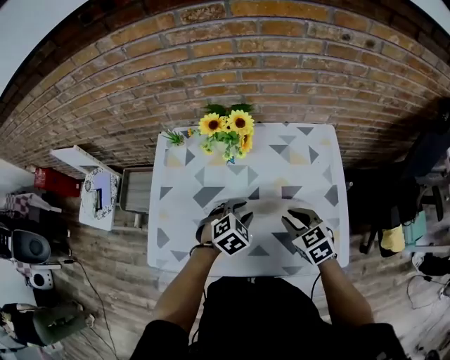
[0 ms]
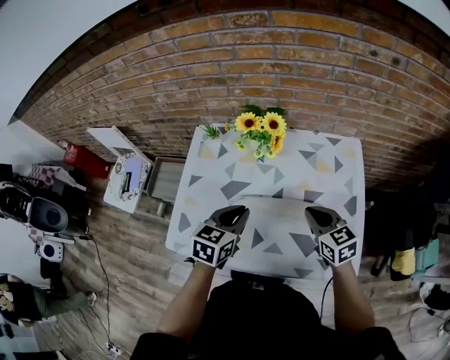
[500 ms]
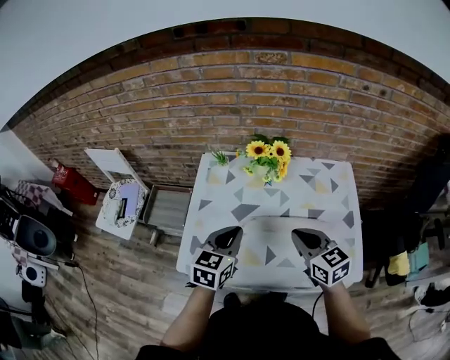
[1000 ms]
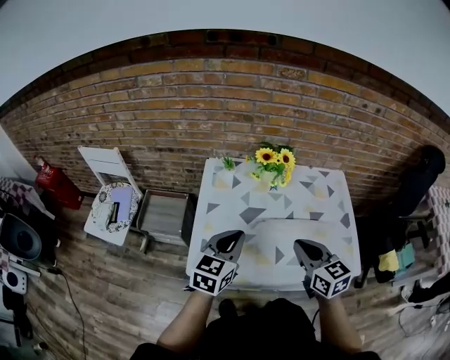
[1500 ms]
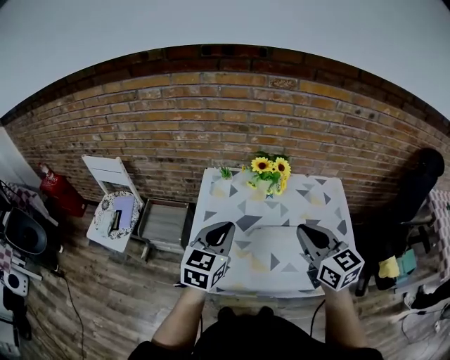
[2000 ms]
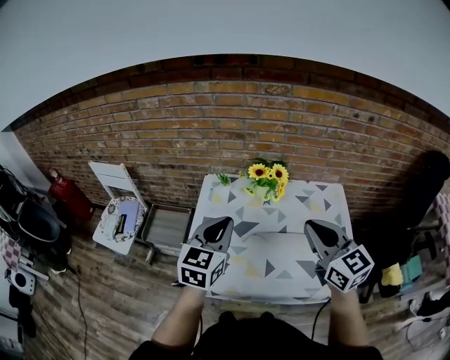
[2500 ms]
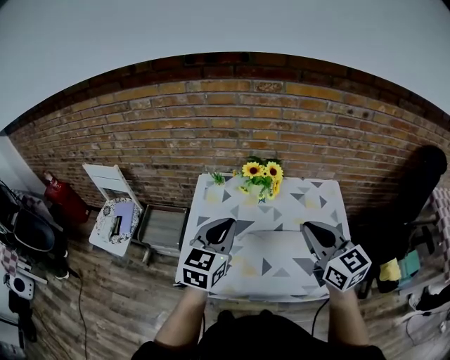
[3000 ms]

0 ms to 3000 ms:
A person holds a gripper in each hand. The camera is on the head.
0 ms to 1500 ms: The right gripper travels to the left, upward and backward by some 25 cm, changes its angle by some 20 degrees, and closes its fingers, while the left gripper shifts approximately 30 cm to the left and upward, tips its fingers upward by approximately 40 degrees, and closes.
1500 ms to 3000 ms: The left gripper moves upward, roughly 10 cm. Meanwhile the right gripper moves upward and to the right, about 15 cm.

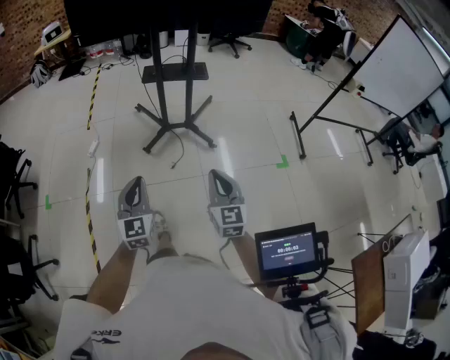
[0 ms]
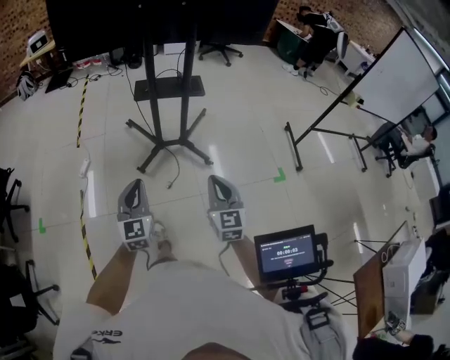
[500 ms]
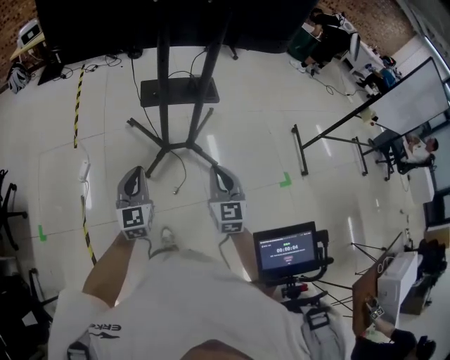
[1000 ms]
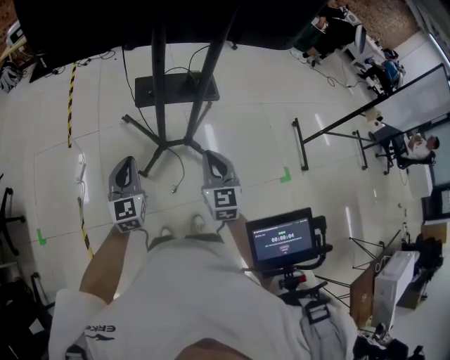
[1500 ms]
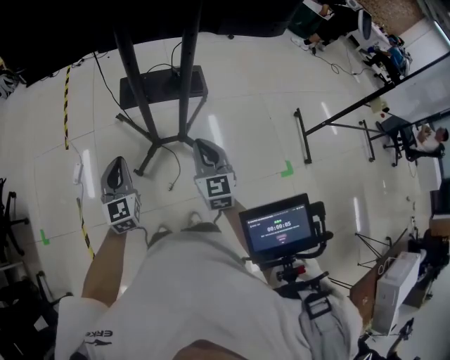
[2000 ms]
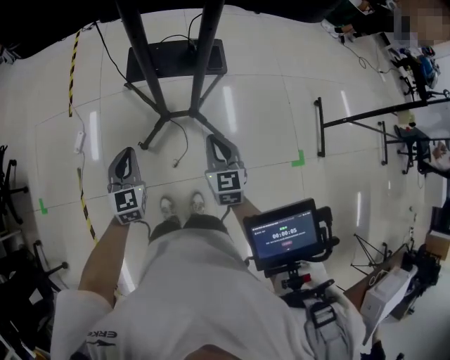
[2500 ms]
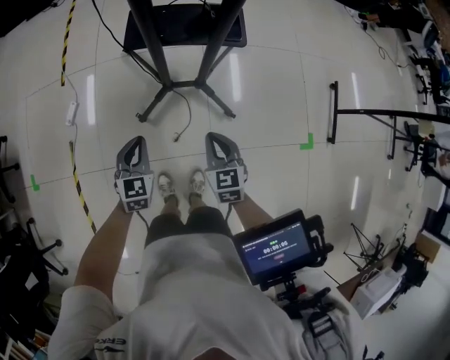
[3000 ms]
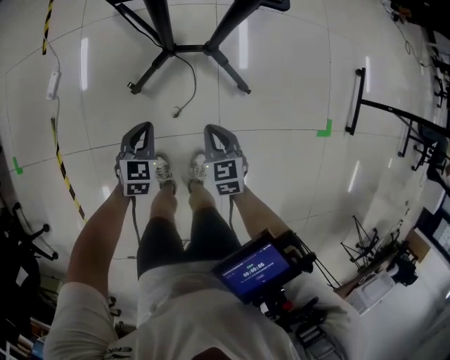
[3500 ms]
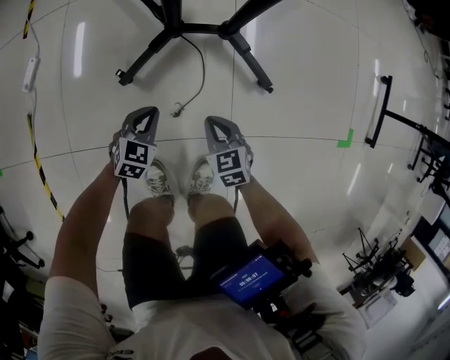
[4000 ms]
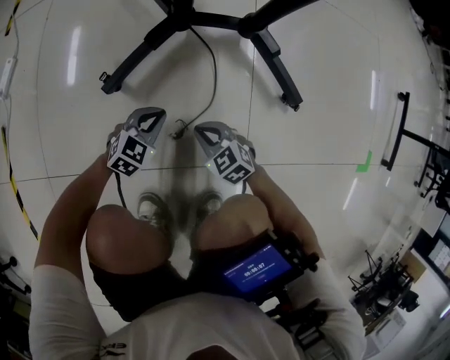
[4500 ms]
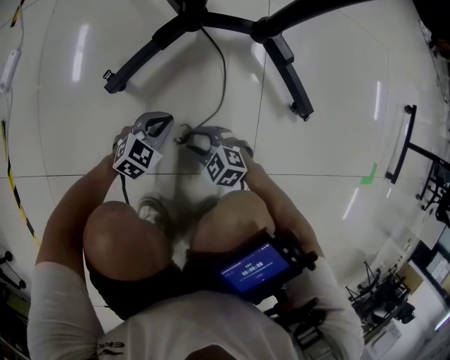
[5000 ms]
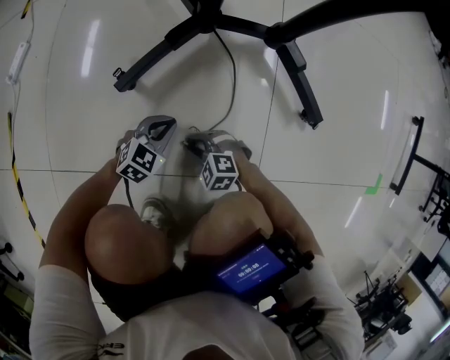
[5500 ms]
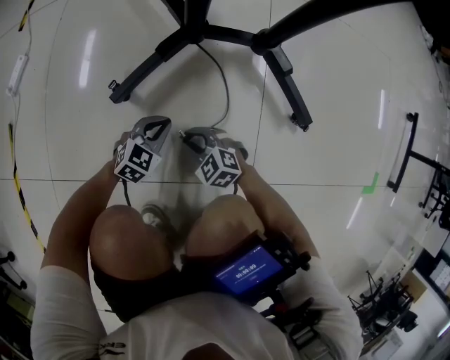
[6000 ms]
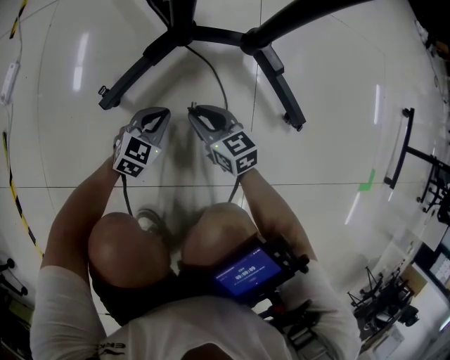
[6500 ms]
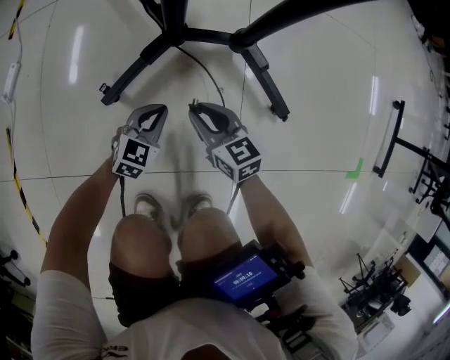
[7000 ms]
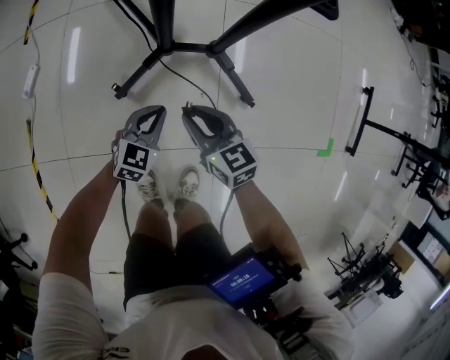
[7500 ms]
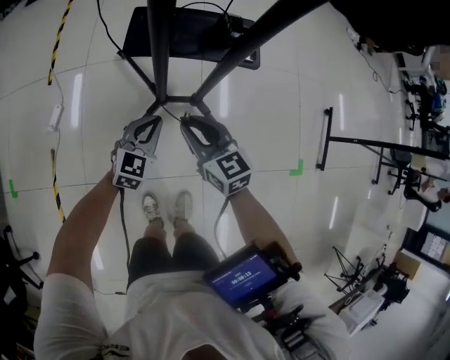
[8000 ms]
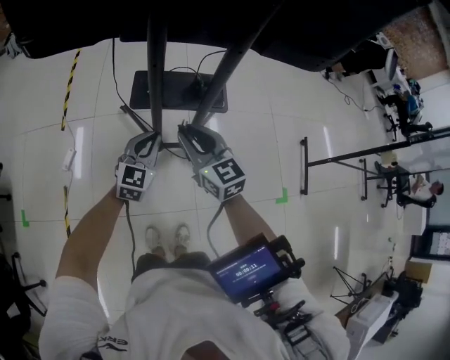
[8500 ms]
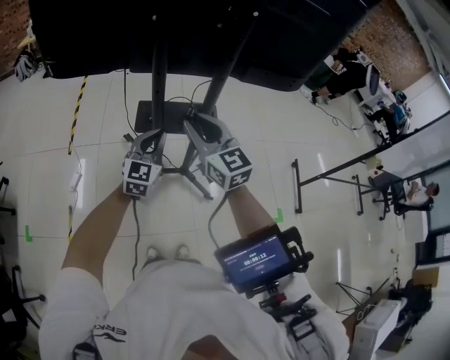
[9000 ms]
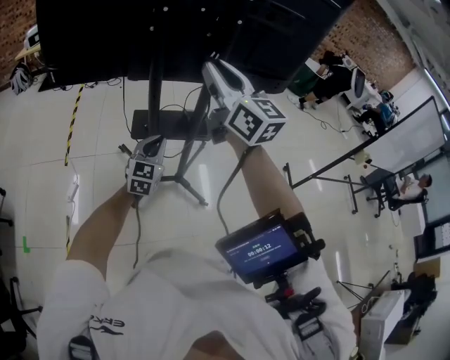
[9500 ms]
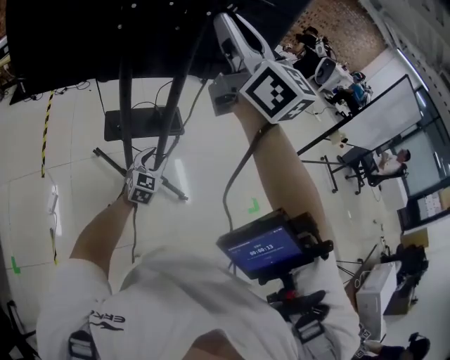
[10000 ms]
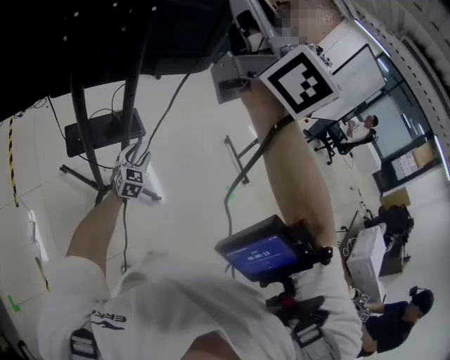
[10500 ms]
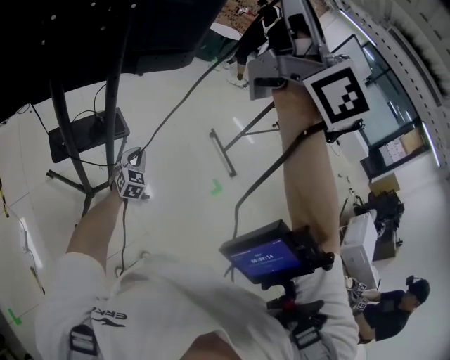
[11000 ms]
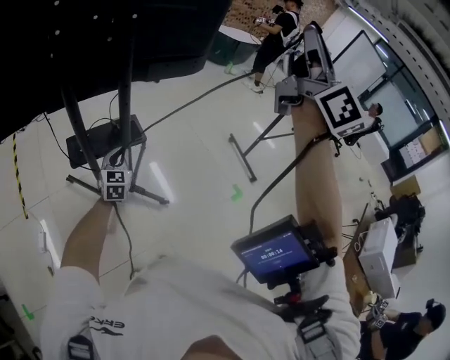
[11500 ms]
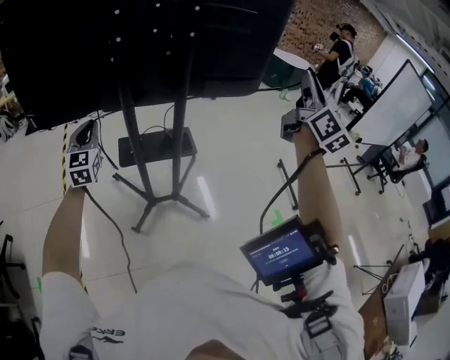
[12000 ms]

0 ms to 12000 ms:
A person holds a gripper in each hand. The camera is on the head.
0 ms to 2000 ms: Both grippers are carried forward, roughly 50 cm.
2000 ms to 4000 ms: The grippers both shift downward by some 70 cm. The left gripper points its fingers some 40 degrees further downward, while the right gripper tips its fingers downward by roughly 30 degrees.
4000 ms to 6000 ms: The two grippers go about 25 cm downward. The right gripper rotates some 40 degrees, and opens up.
6000 ms to 8000 ms: Both grippers travel together upward, approximately 70 cm. The left gripper rotates some 20 degrees, while the right gripper rotates about 50 degrees.
8000 ms to 10000 ms: The right gripper travels upward by approximately 70 cm, and tips its fingers upward by approximately 50 degrees. Meanwhile the left gripper goes about 25 cm upward, and opens.
10000 ms to 12000 ms: The right gripper shifts roughly 30 cm to the right, and turns by approximately 30 degrees. Meanwhile the left gripper shifts some 30 cm to the left and upward, rotates about 30 degrees, and closes its fingers.

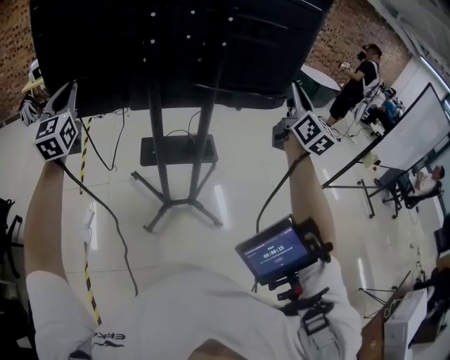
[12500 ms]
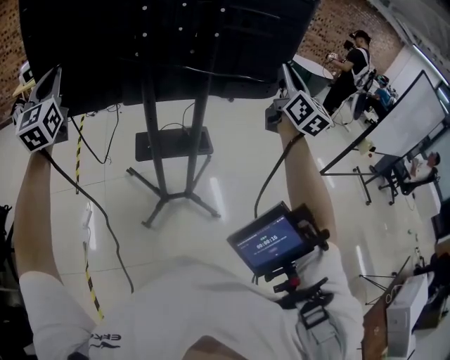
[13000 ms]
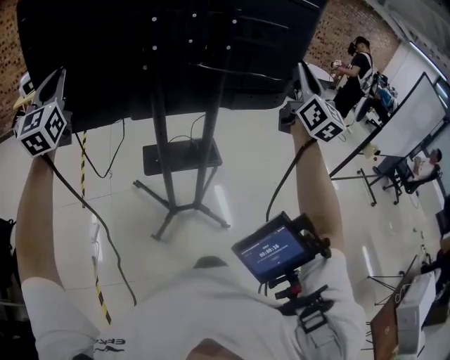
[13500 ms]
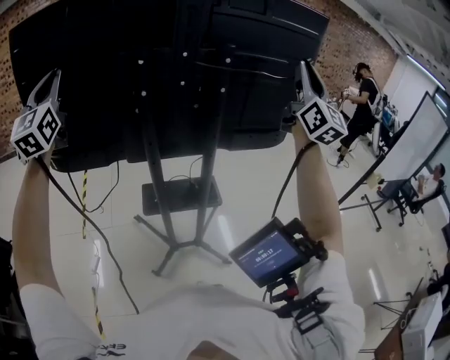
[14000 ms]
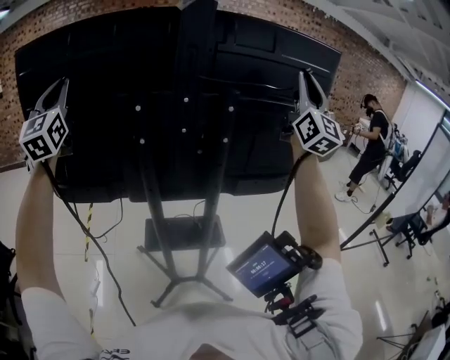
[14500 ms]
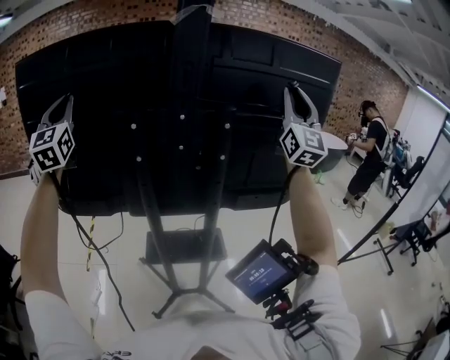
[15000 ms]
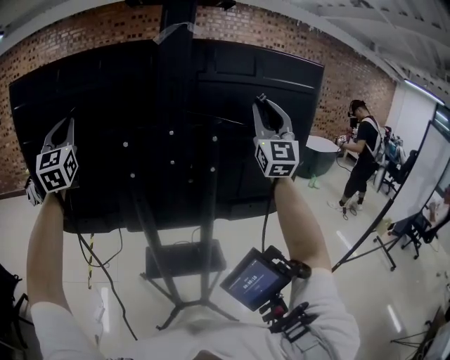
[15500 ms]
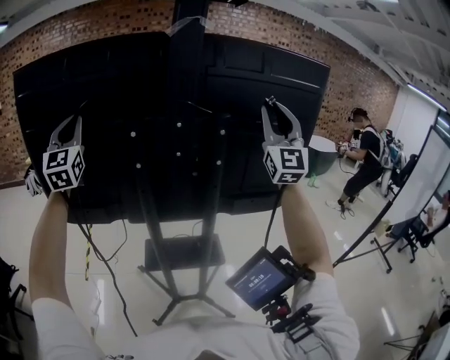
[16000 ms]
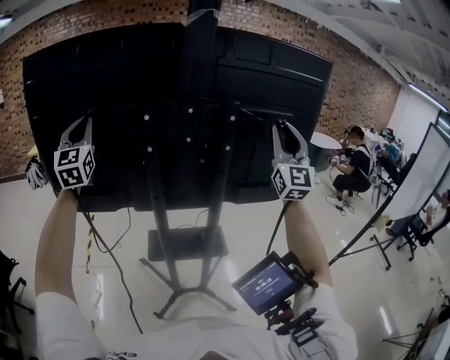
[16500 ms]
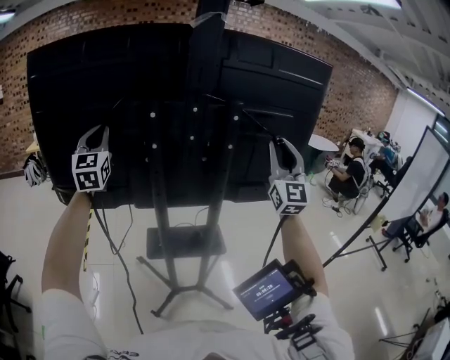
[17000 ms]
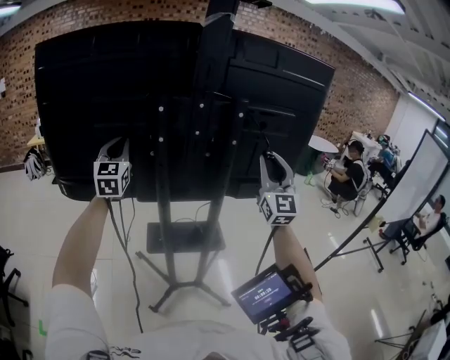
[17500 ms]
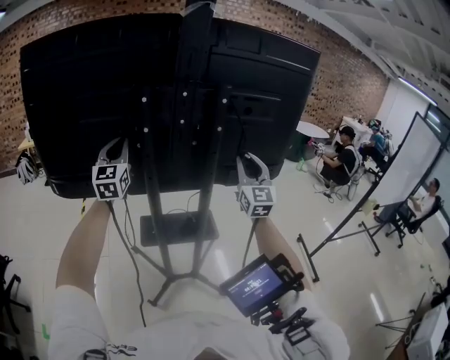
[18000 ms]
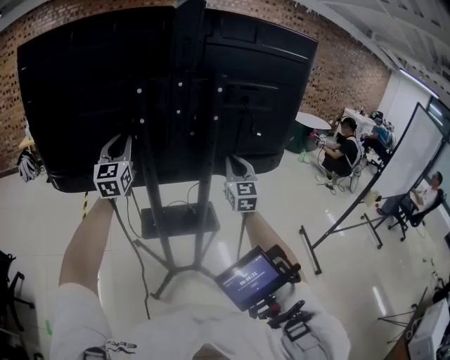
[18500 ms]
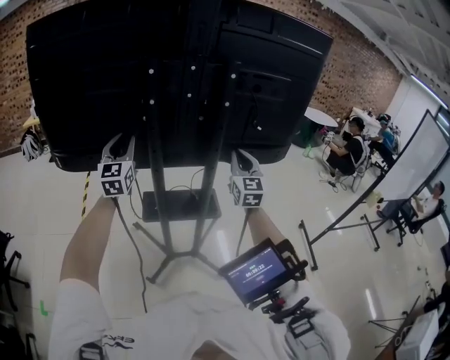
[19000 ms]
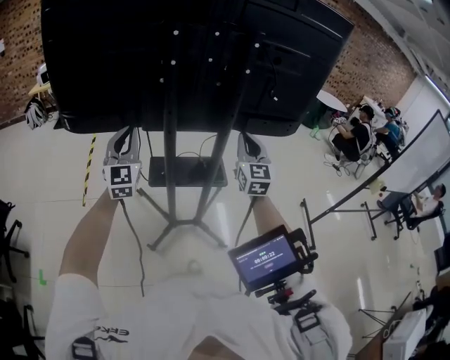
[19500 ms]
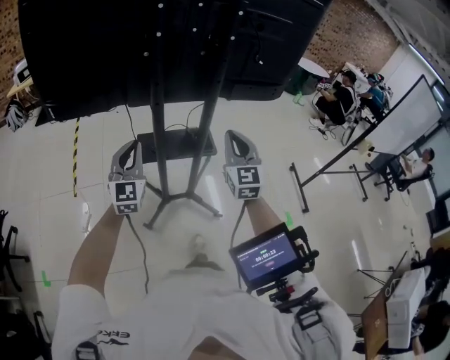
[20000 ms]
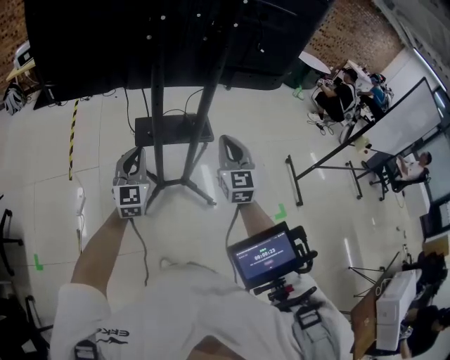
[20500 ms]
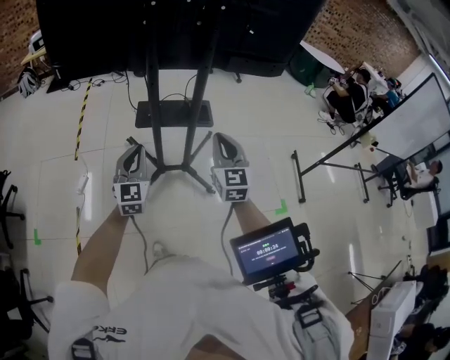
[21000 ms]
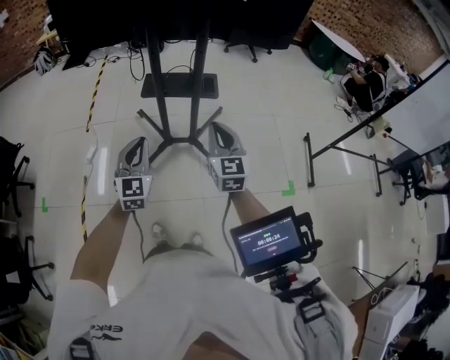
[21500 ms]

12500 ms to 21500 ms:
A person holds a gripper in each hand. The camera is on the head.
12500 ms to 14500 ms: The grippers both shift upward and forward by approximately 25 cm. The right gripper rotates approximately 30 degrees.
14500 ms to 17000 ms: The right gripper shifts some 15 cm downward and to the left, and swivels roughly 20 degrees, while the left gripper heads downward, covering roughly 15 cm.
17000 ms to 19500 ms: The right gripper travels downward and to the left by roughly 25 cm, and rotates some 30 degrees. Meanwhile the left gripper is displaced downward and backward by some 25 cm.
19500 ms to 21500 ms: The left gripper moves backward, downward and to the right, roughly 40 cm, while the right gripper goes roughly 35 cm backward and downward.

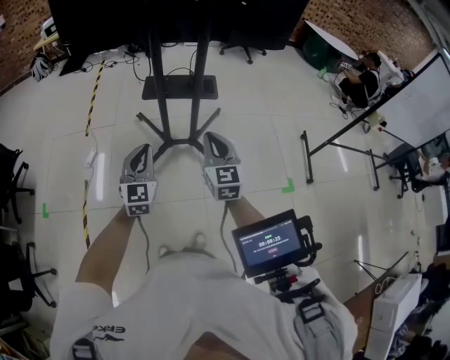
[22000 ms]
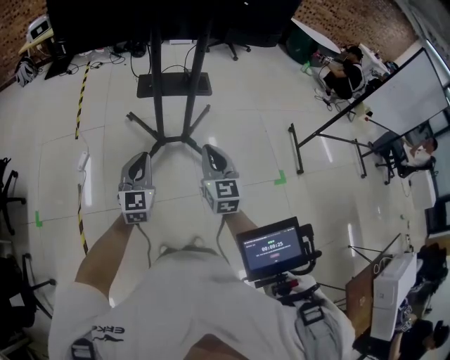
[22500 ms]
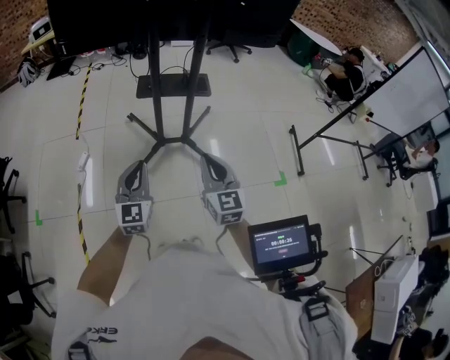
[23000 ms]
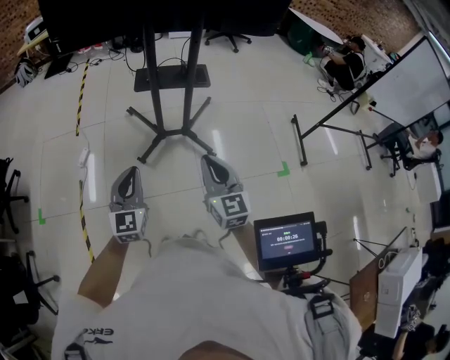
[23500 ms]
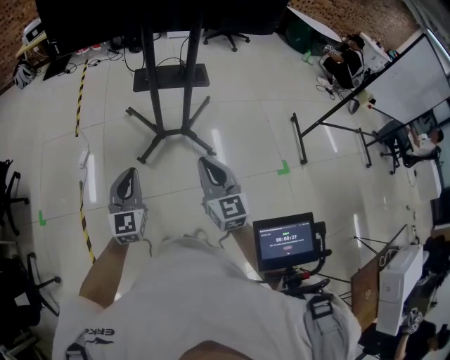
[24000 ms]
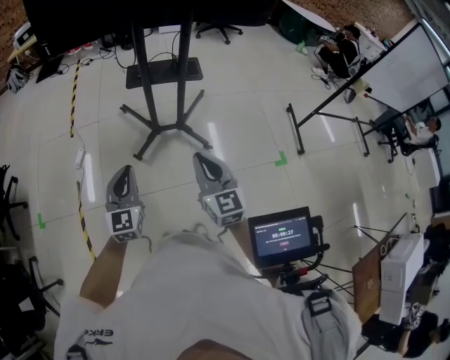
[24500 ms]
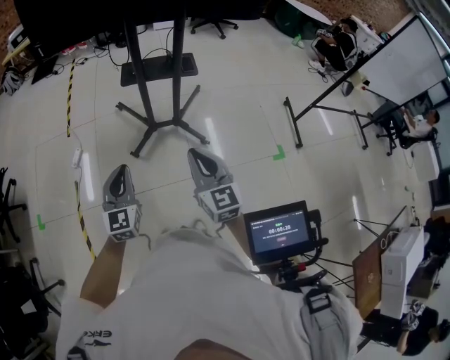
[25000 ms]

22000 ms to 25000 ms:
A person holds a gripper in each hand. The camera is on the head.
22000 ms to 23500 ms: The right gripper moves backward, roughly 10 cm; the left gripper heads backward and to the left, covering some 10 cm.
23500 ms to 25000 ms: Neither gripper changes place.
